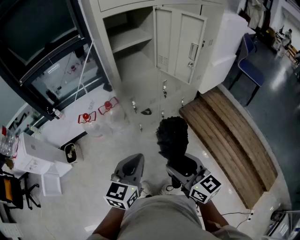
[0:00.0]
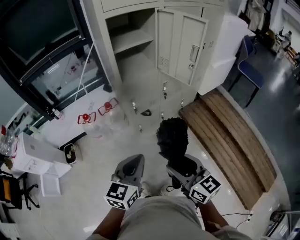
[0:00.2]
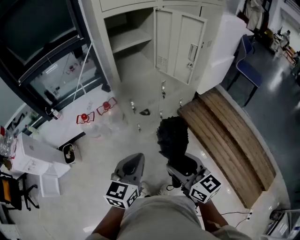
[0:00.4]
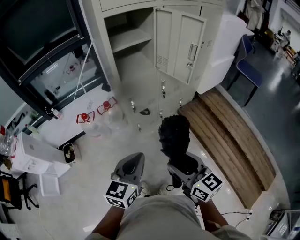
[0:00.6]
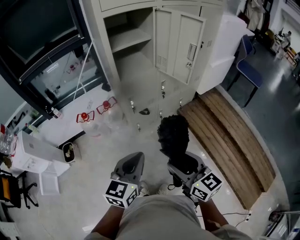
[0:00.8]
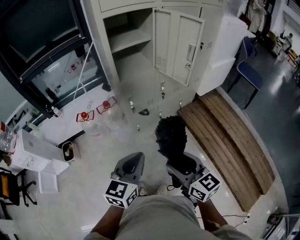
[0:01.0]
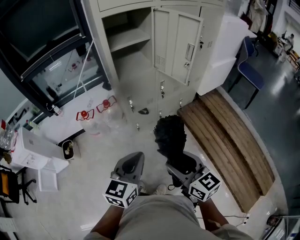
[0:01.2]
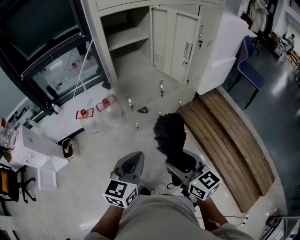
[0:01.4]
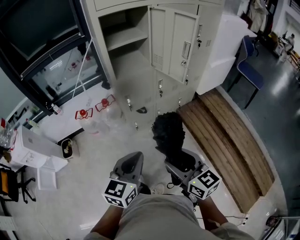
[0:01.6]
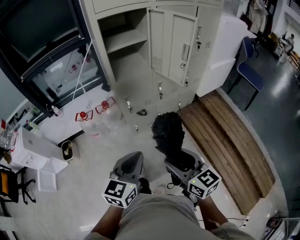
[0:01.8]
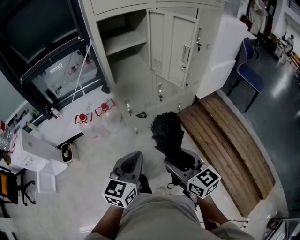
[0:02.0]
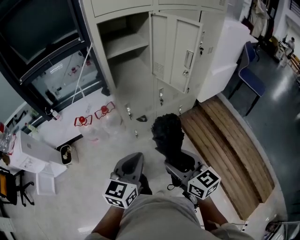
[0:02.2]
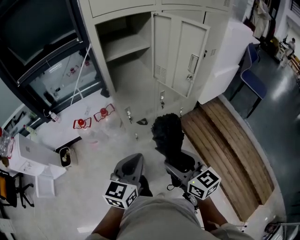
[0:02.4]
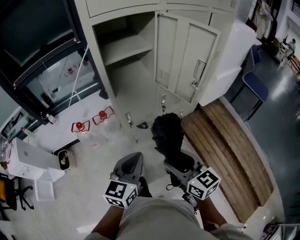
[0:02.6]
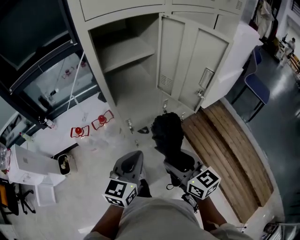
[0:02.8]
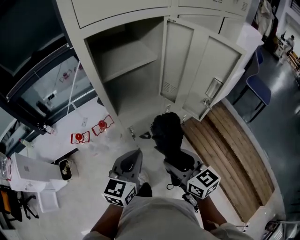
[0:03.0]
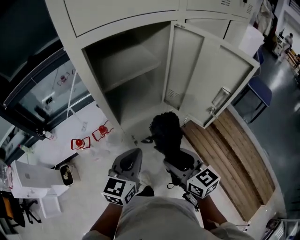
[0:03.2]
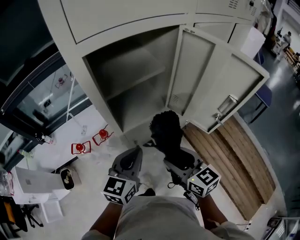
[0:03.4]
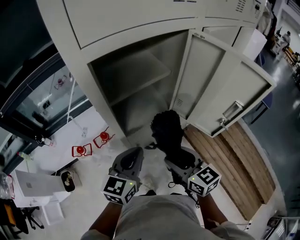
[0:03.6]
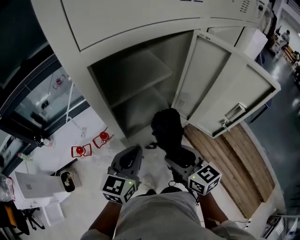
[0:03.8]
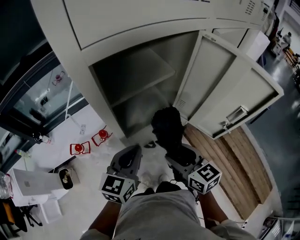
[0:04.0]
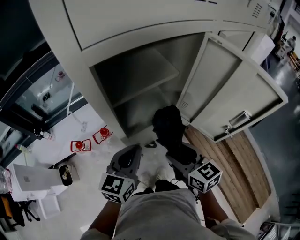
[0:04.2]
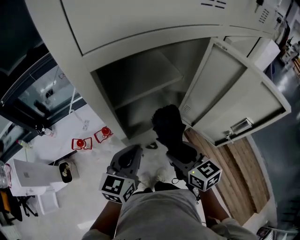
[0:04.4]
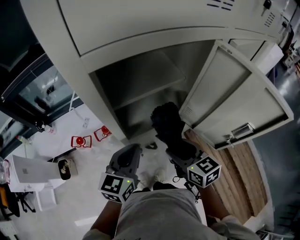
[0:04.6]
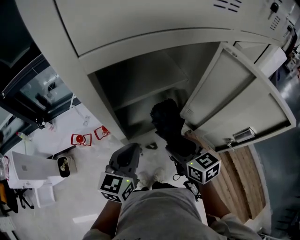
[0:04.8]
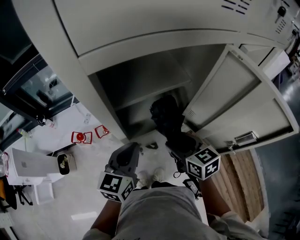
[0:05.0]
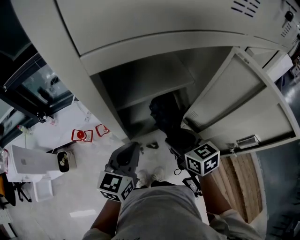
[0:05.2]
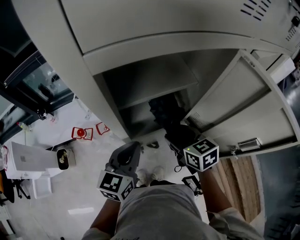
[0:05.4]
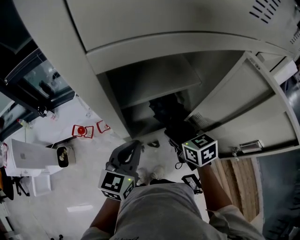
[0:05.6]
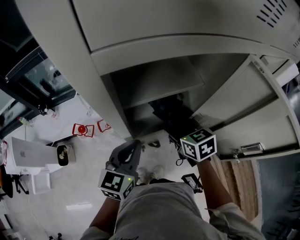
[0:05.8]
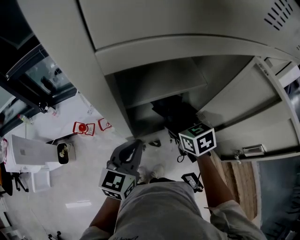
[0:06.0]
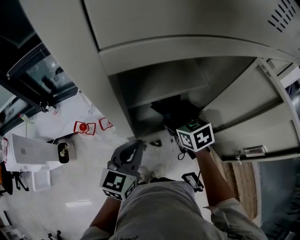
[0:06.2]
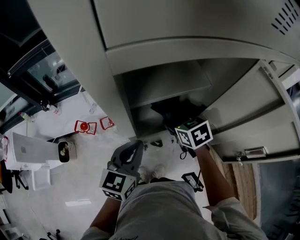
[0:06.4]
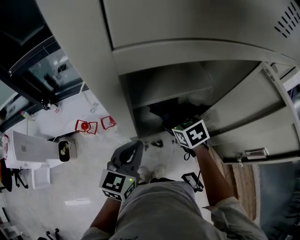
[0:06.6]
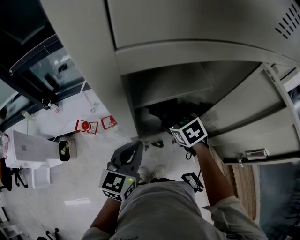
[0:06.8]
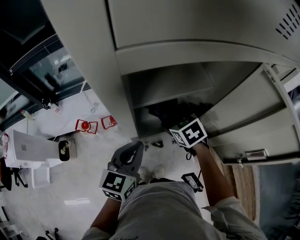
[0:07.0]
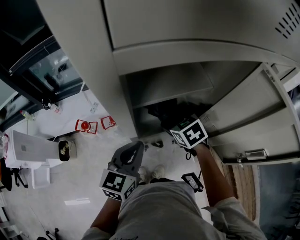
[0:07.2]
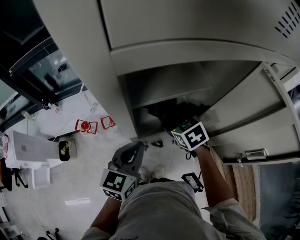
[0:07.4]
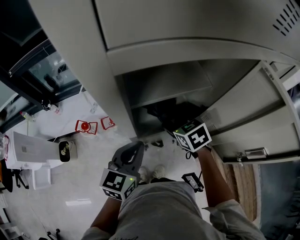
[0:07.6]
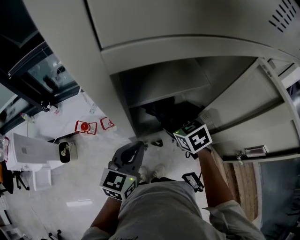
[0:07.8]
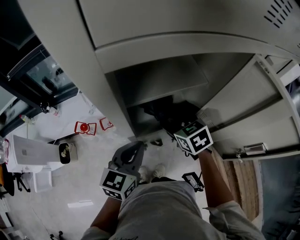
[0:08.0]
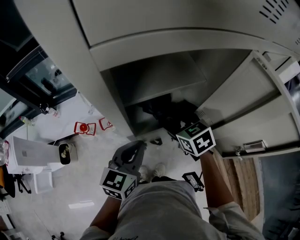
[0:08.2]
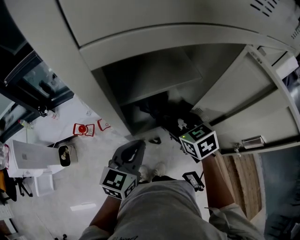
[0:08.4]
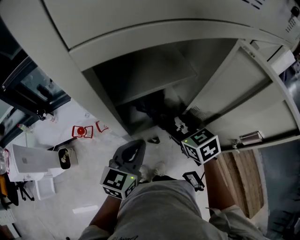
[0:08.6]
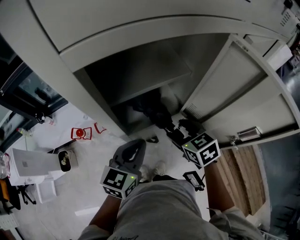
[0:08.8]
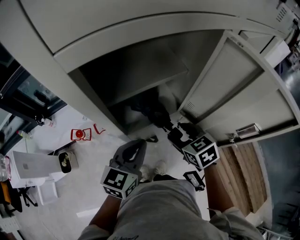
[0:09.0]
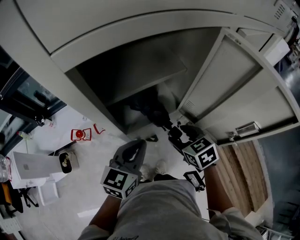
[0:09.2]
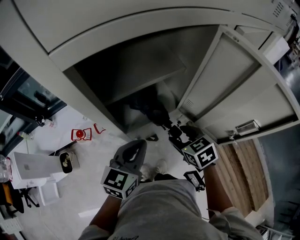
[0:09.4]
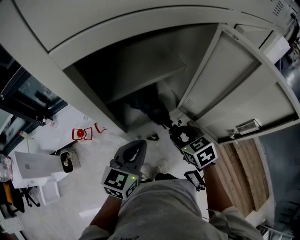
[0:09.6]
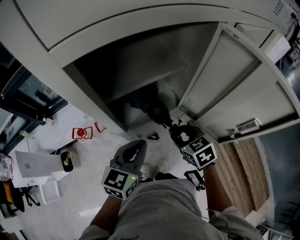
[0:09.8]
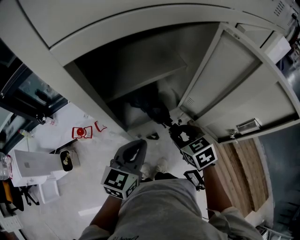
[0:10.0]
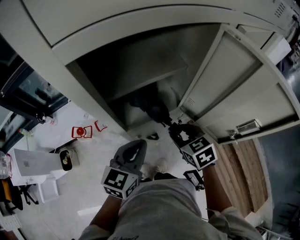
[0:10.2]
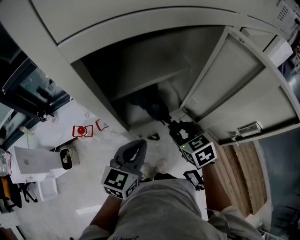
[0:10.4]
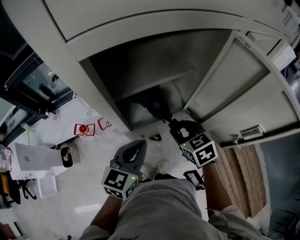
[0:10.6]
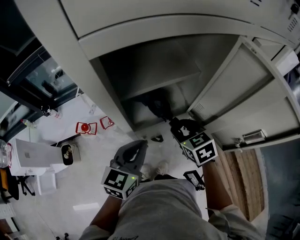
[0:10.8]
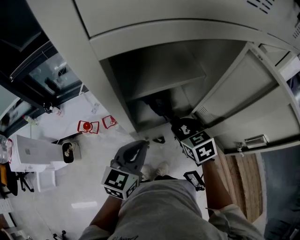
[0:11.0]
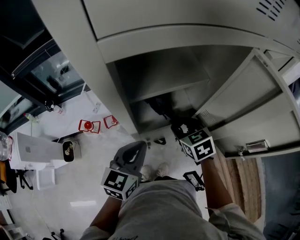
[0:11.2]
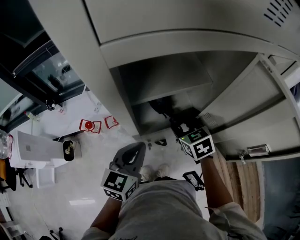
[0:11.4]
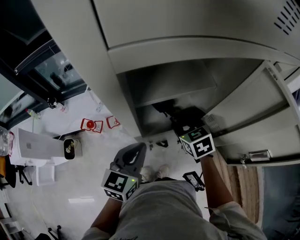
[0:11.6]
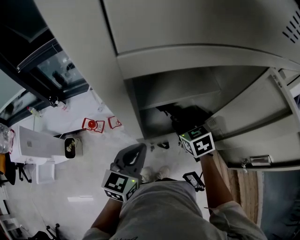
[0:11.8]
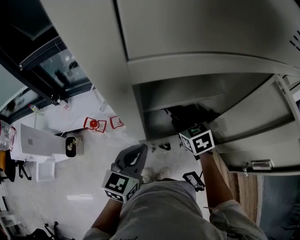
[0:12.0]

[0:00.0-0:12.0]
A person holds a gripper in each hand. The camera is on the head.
0:00.0 to 0:01.6: The grippers move only a little.
0:01.6 to 0:03.0: The two grippers go approximately 25 cm forward.
0:03.0 to 0:04.4: The grippers both shift forward by roughly 15 cm.
0:04.4 to 0:06.0: The right gripper travels forward by approximately 15 cm.
0:06.0 to 0:07.6: There are only small adjustments of the grippers.
0:07.6 to 0:09.0: The left gripper heads to the right, covering roughly 5 cm; the right gripper goes approximately 10 cm backward and to the right.
0:09.0 to 0:10.4: The grippers move only a little.
0:10.4 to 0:12.0: The left gripper heads to the left, covering approximately 5 cm. The right gripper shifts approximately 15 cm forward and to the left.

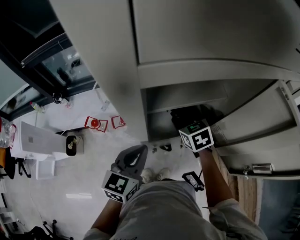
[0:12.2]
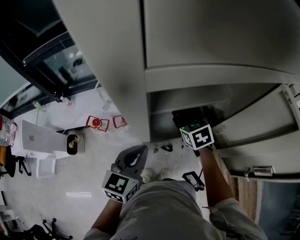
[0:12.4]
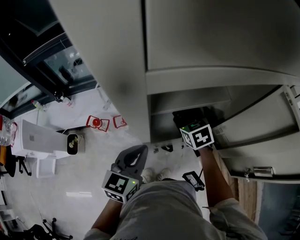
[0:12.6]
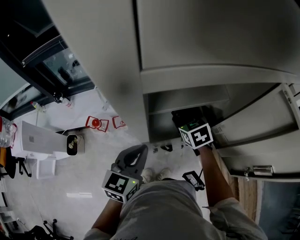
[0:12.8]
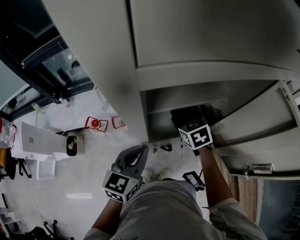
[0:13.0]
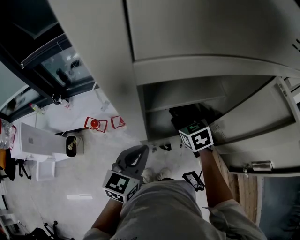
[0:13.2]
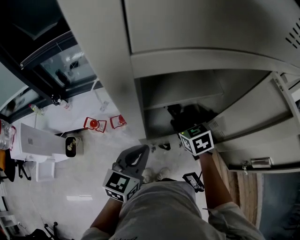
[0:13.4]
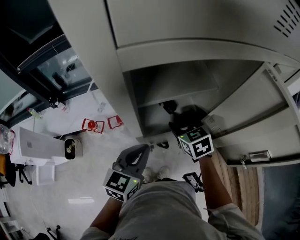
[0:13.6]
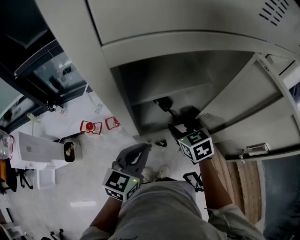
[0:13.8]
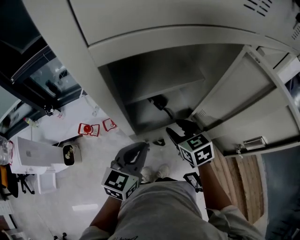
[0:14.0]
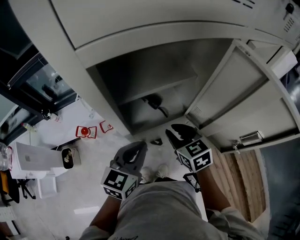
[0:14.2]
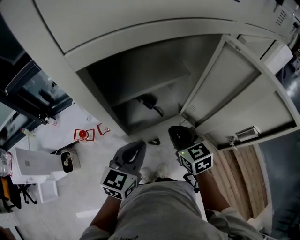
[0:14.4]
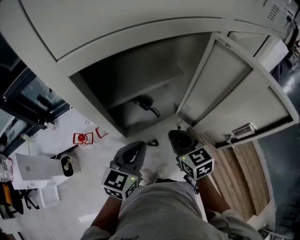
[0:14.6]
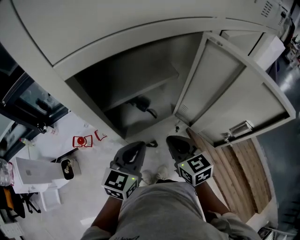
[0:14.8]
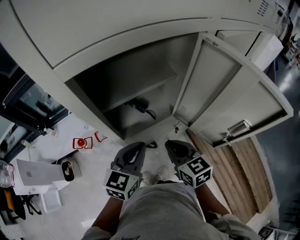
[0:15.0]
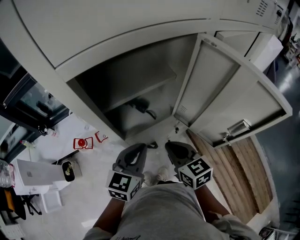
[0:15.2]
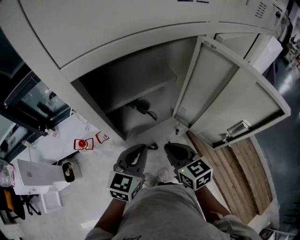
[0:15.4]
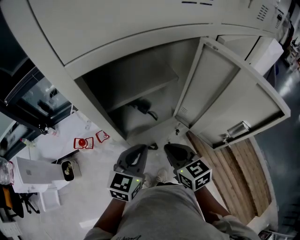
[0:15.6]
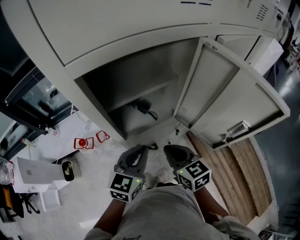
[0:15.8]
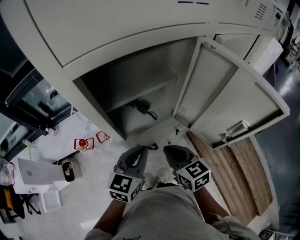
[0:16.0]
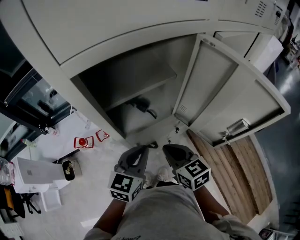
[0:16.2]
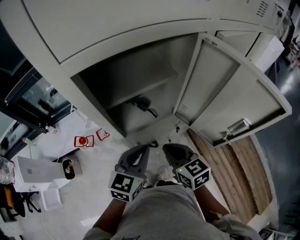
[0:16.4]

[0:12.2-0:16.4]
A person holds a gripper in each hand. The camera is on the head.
0:12.2 to 0:13.6: The grippers move only a little.
0:13.6 to 0:15.0: The right gripper moves backward and to the right, roughly 15 cm, swivels roughly 20 degrees, and closes its fingers. Meanwhile the left gripper goes approximately 5 cm to the right.
0:15.0 to 0:16.4: The grippers make only small movements.

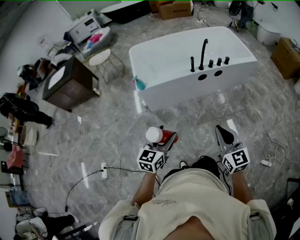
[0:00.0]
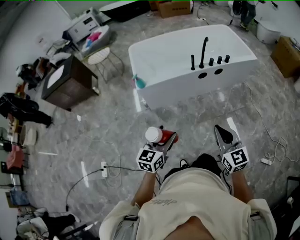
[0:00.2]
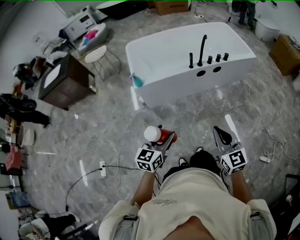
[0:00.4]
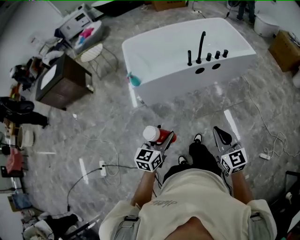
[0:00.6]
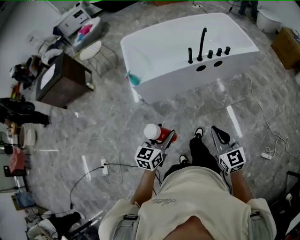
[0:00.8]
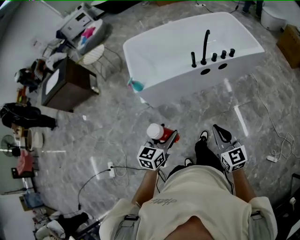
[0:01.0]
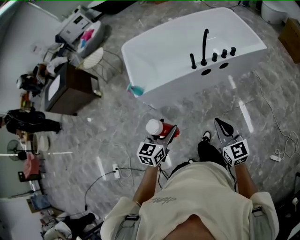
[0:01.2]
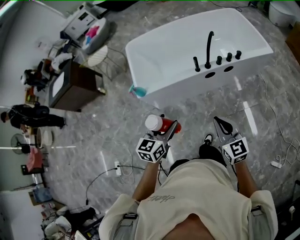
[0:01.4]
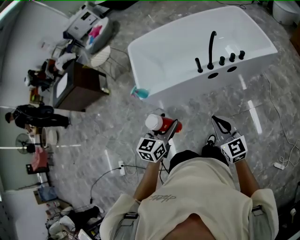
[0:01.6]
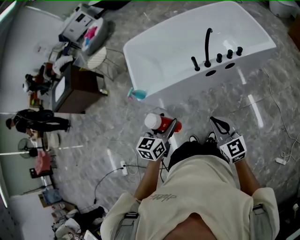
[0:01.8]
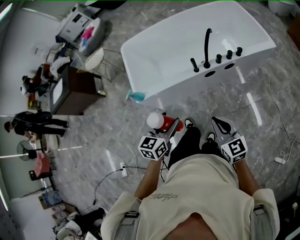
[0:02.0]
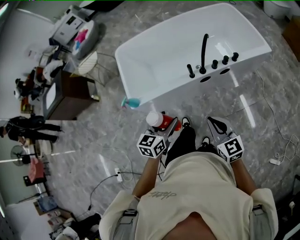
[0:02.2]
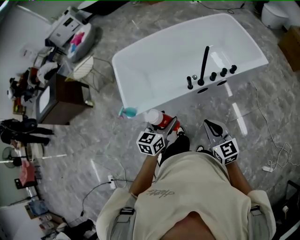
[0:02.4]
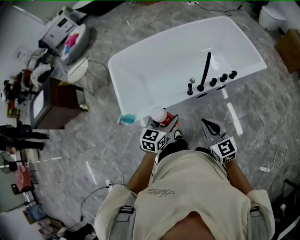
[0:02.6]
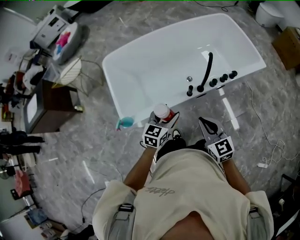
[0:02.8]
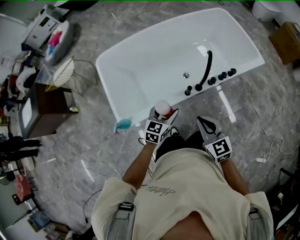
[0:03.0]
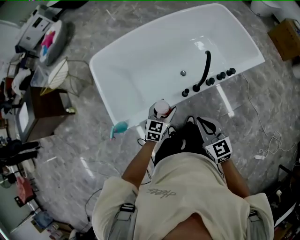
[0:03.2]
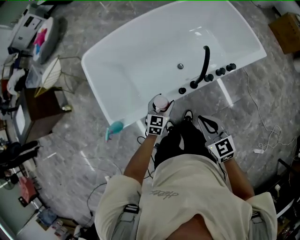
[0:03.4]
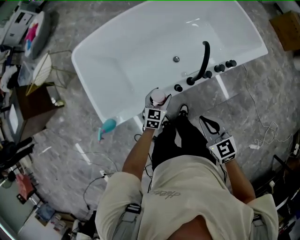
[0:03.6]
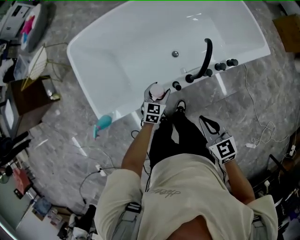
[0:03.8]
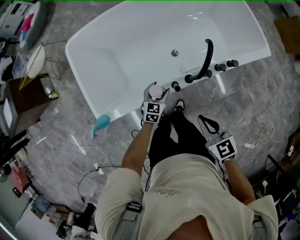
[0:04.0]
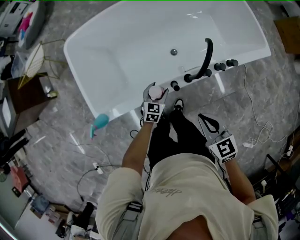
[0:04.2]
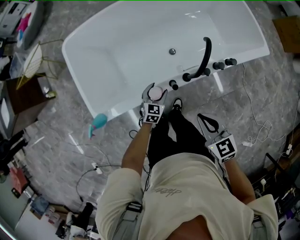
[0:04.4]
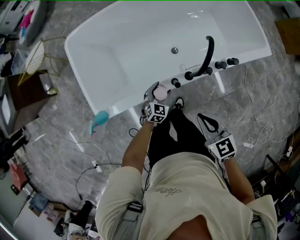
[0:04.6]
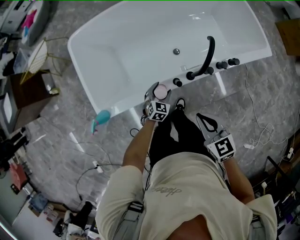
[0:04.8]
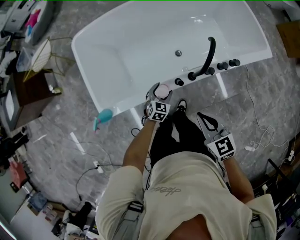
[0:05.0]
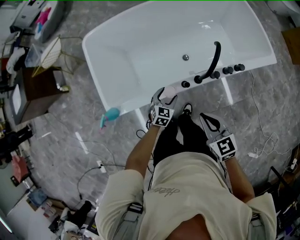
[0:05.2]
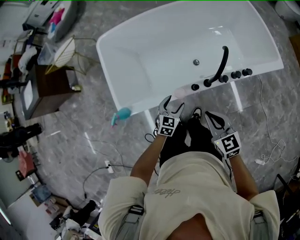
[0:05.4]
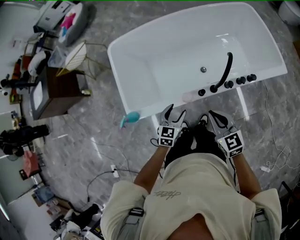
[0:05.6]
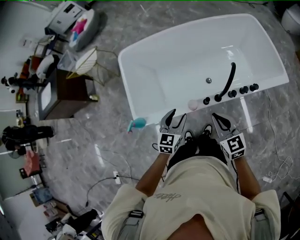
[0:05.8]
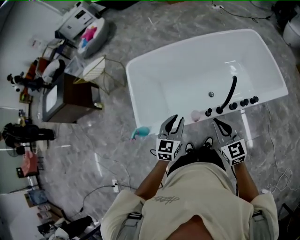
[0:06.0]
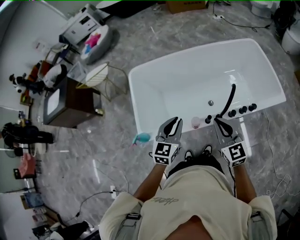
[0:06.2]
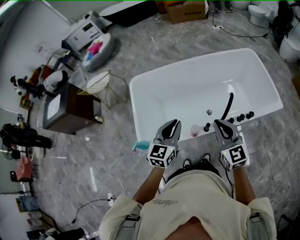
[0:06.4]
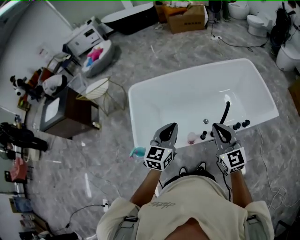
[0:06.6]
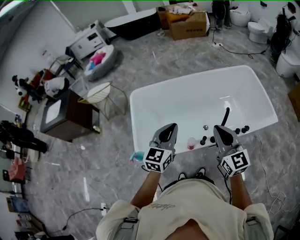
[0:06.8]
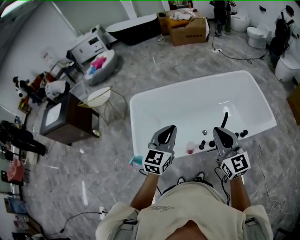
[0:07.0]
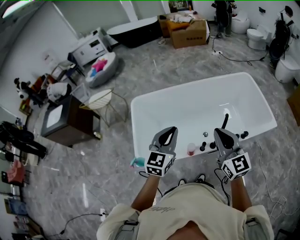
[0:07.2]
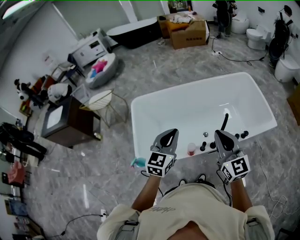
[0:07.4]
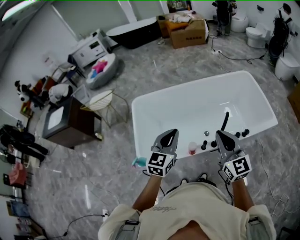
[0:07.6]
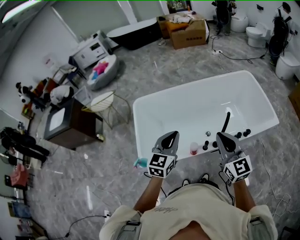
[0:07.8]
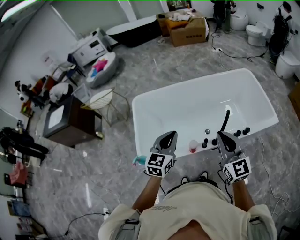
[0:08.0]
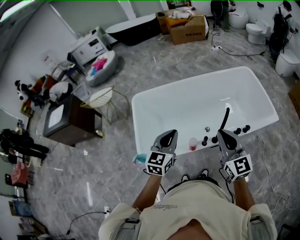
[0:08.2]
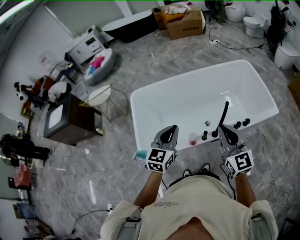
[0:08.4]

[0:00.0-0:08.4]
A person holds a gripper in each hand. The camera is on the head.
0:00.0 to 0:01.4: Both grippers travel together forward, roughly 20 cm.
0:01.4 to 0:02.8: Both grippers travel together forward, about 25 cm.
0:02.8 to 0:04.2: The left gripper moves downward and forward, about 25 cm, while the right gripper shifts roughly 15 cm downward, forward and to the right.
0:04.2 to 0:05.6: The right gripper goes roughly 5 cm to the left. Meanwhile the left gripper moves upward, backward and to the left, approximately 15 cm.
0:05.6 to 0:07.0: The two grippers go approximately 25 cm upward. The right gripper turns by about 30 degrees, while the left gripper swivels some 20 degrees, and closes up.
0:07.0 to 0:08.4: The grippers move only a little.
